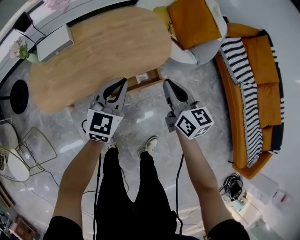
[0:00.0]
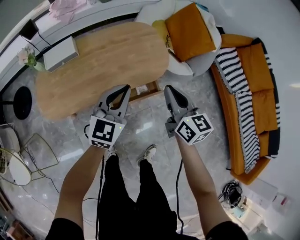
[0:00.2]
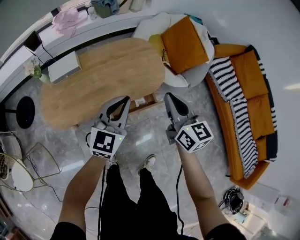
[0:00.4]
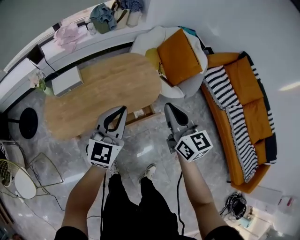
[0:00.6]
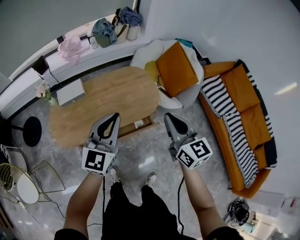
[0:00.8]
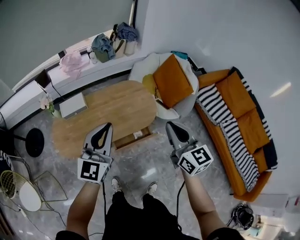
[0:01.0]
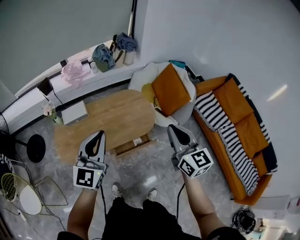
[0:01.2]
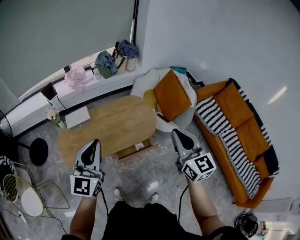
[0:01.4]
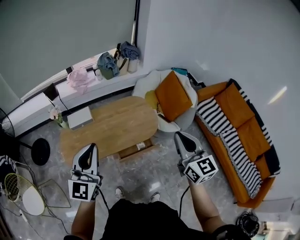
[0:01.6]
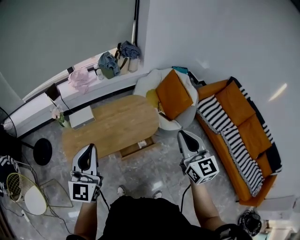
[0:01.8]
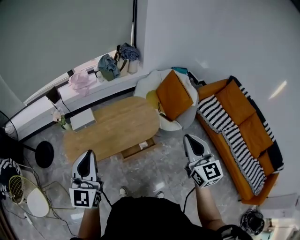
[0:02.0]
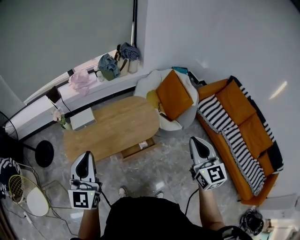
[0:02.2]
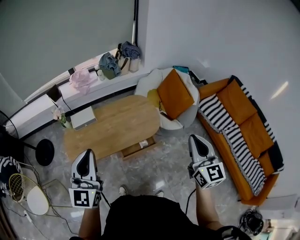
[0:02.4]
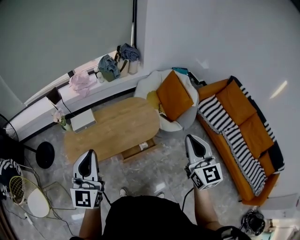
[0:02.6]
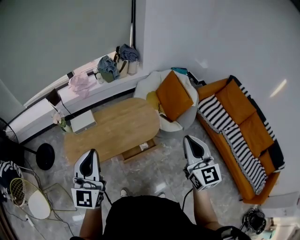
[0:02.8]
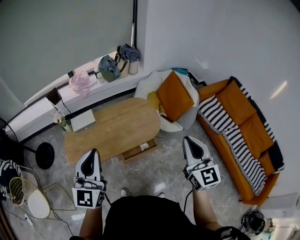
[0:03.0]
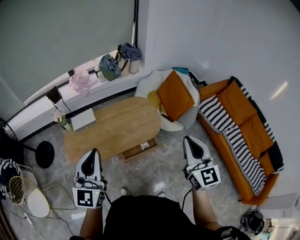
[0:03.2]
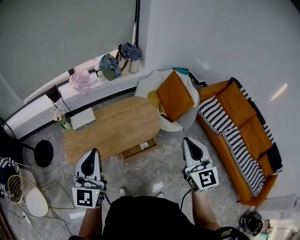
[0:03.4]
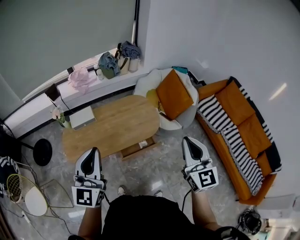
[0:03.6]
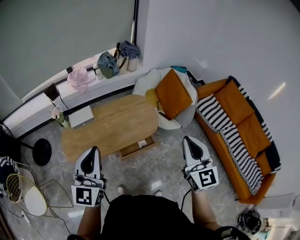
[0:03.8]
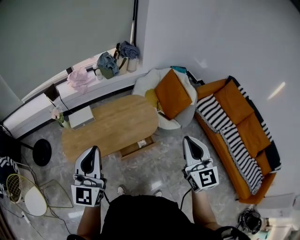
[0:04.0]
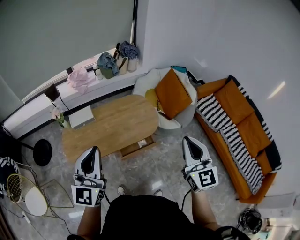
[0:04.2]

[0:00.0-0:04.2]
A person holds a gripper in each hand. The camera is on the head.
0:00.0 to 0:01.4: The two grippers go roughly 35 cm upward. The left gripper swivels approximately 20 degrees. The right gripper turns by some 20 degrees.
0:01.4 to 0:02.8: The grippers both shift backward by approximately 5 cm.
0:02.8 to 0:04.2: The grippers move only a little.

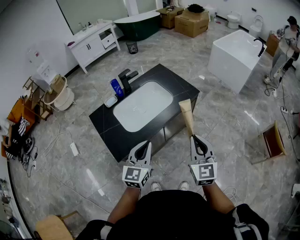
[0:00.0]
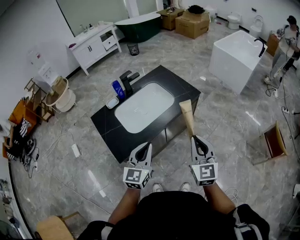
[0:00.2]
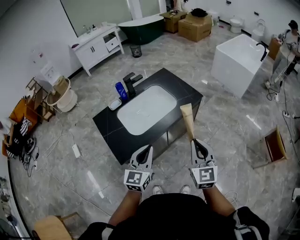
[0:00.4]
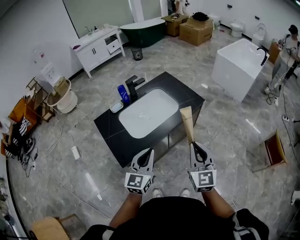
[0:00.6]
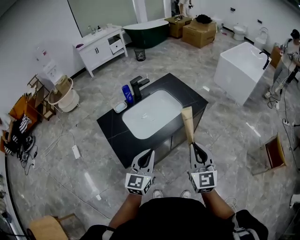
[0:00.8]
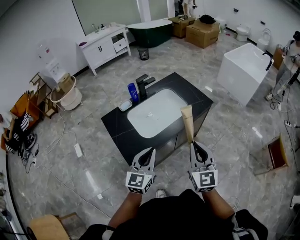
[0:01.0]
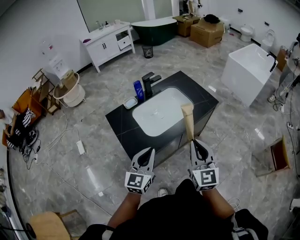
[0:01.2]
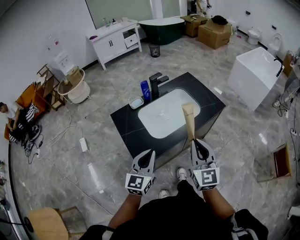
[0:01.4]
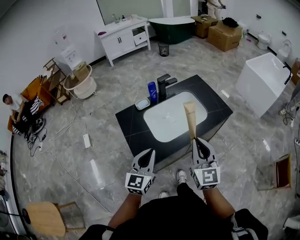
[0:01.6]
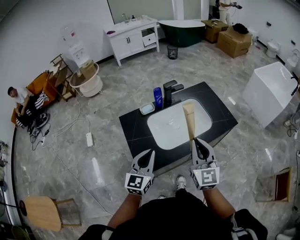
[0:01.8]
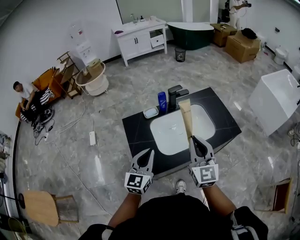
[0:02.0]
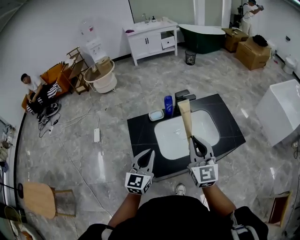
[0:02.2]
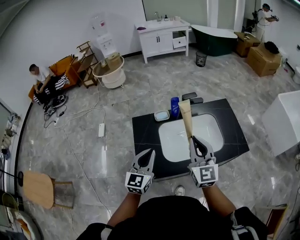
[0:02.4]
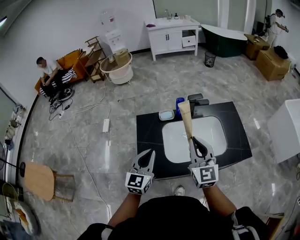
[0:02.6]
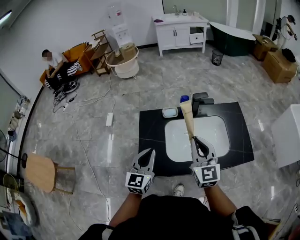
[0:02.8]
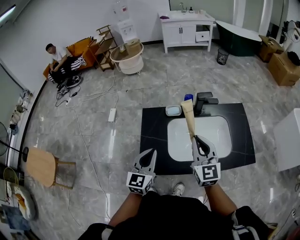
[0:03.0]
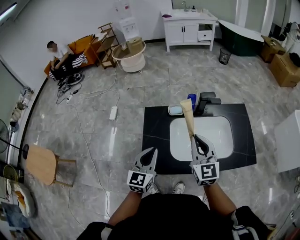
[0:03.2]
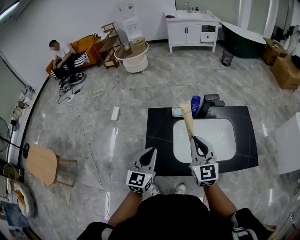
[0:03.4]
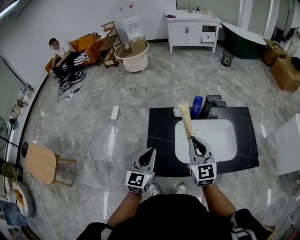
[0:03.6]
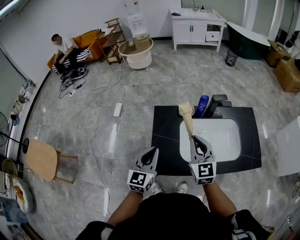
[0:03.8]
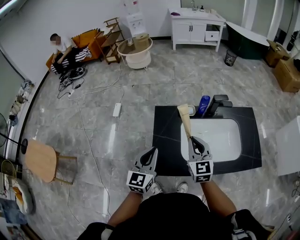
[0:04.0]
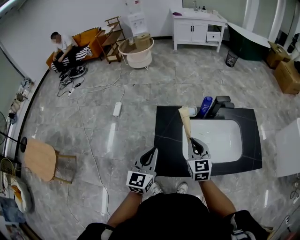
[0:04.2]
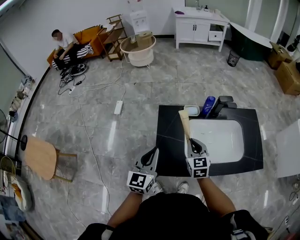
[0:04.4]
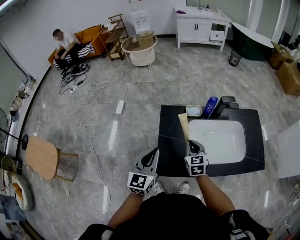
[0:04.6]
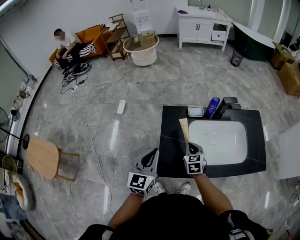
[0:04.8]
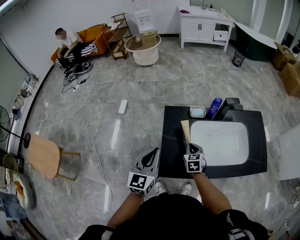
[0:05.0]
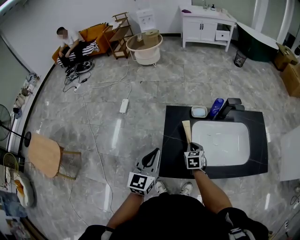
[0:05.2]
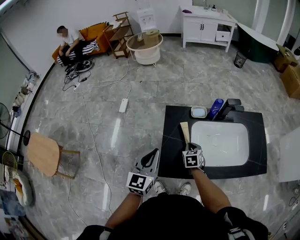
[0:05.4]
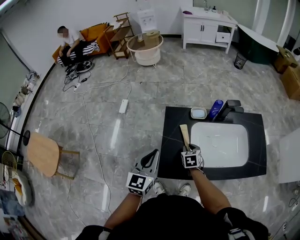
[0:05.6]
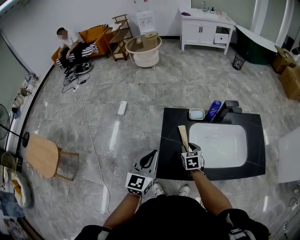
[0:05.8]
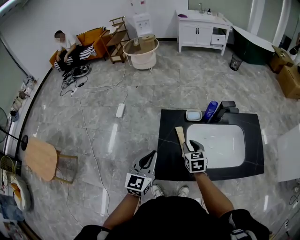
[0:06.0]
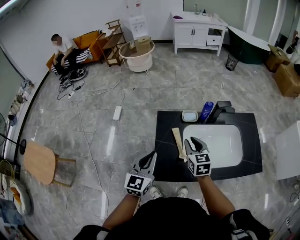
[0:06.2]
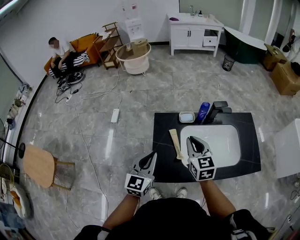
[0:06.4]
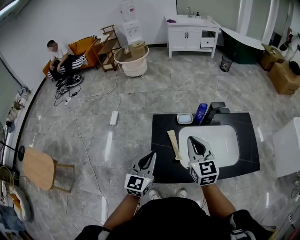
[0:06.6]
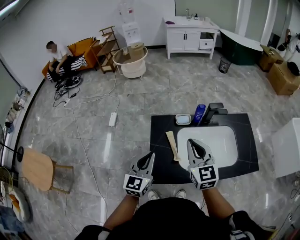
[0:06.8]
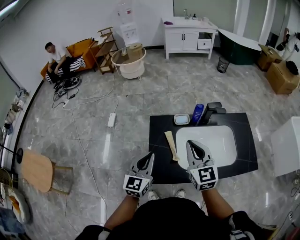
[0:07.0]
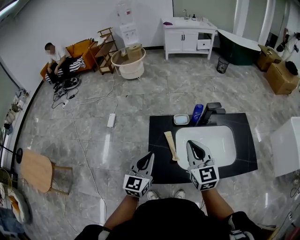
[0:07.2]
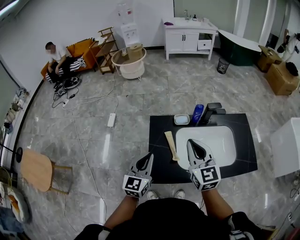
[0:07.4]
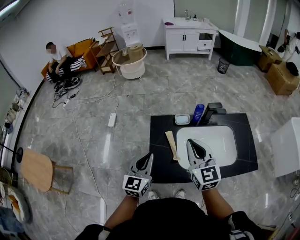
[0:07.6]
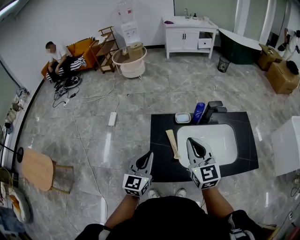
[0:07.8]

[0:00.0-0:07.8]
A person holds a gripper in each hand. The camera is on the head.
0:00.0 to 0:01.6: The right gripper shifts some 20 cm to the left and forward; the left gripper is displaced to the left by some 15 cm.
0:01.6 to 0:03.2: The right gripper shifts by about 20 cm, and changes its angle by about 30 degrees; the left gripper ends up approximately 10 cm from where it was, and turns by about 30 degrees.
0:03.2 to 0:04.6: The right gripper travels downward and to the left by some 20 cm, and swivels roughly 30 degrees. The left gripper is displaced to the left by approximately 10 cm.
0:04.6 to 0:06.2: The right gripper is displaced upward by approximately 5 cm, and opens up.
0:06.2 to 0:07.8: The right gripper goes approximately 15 cm upward, turns by some 20 degrees, and closes.

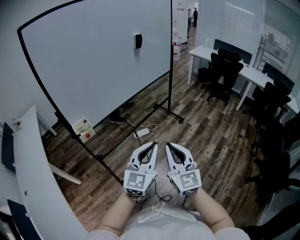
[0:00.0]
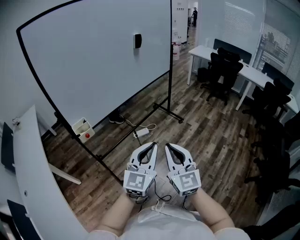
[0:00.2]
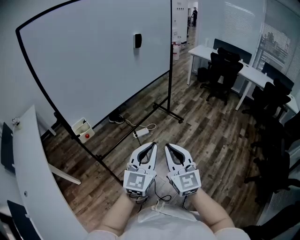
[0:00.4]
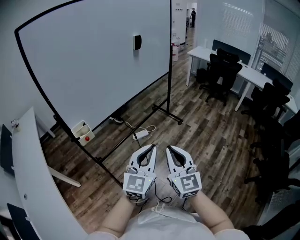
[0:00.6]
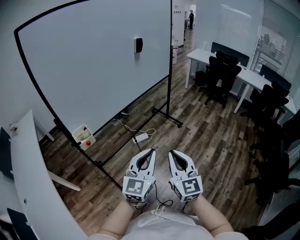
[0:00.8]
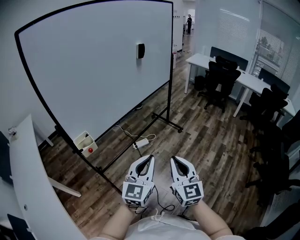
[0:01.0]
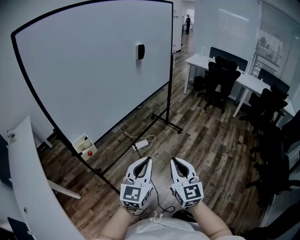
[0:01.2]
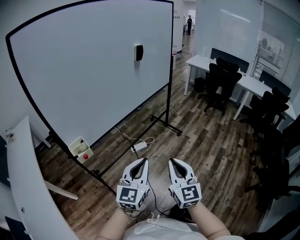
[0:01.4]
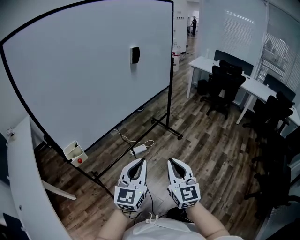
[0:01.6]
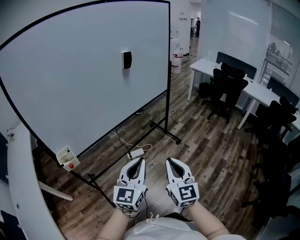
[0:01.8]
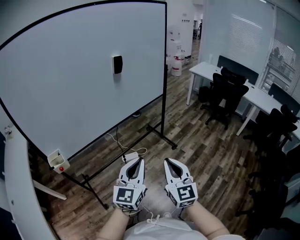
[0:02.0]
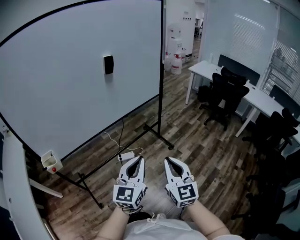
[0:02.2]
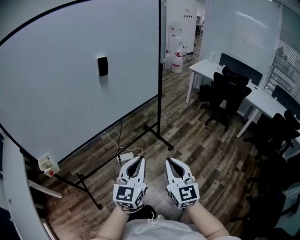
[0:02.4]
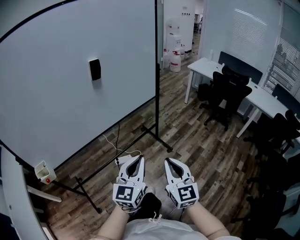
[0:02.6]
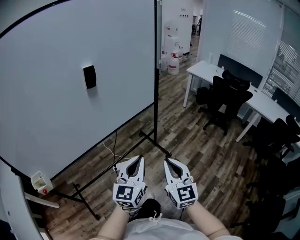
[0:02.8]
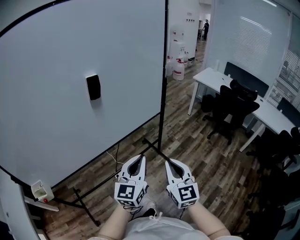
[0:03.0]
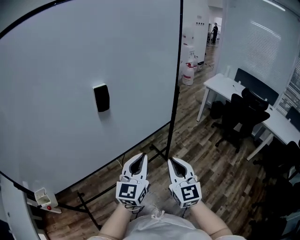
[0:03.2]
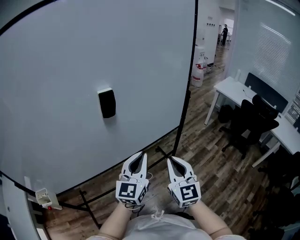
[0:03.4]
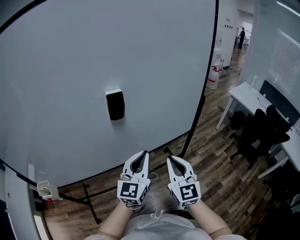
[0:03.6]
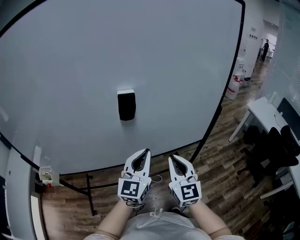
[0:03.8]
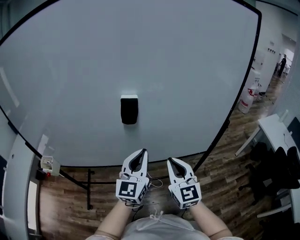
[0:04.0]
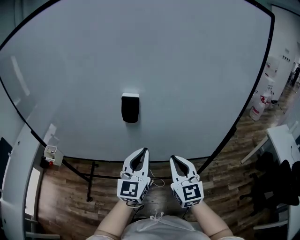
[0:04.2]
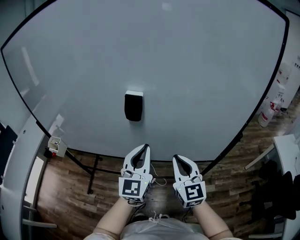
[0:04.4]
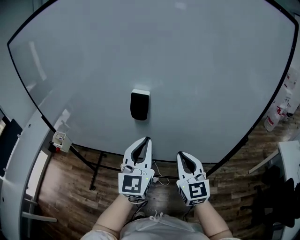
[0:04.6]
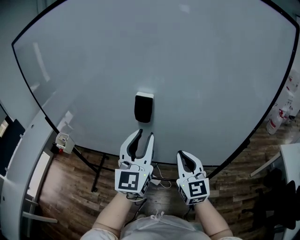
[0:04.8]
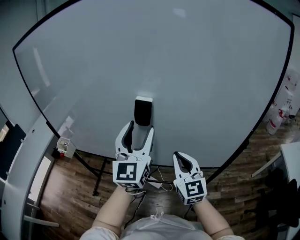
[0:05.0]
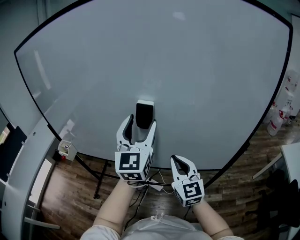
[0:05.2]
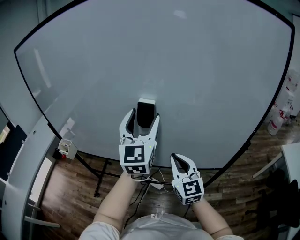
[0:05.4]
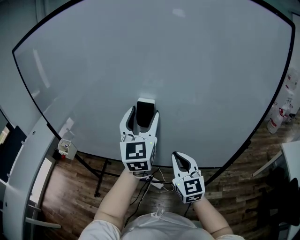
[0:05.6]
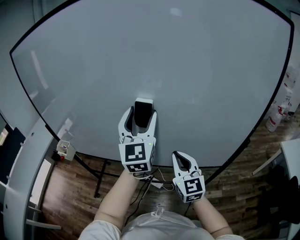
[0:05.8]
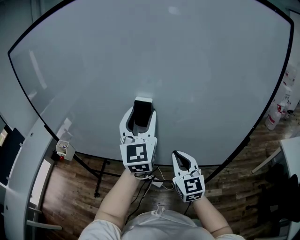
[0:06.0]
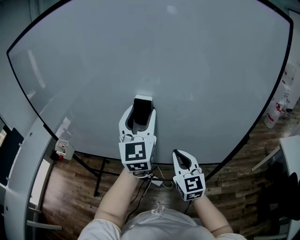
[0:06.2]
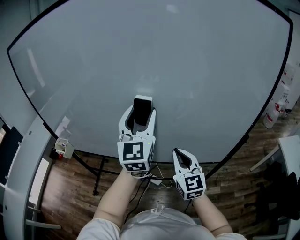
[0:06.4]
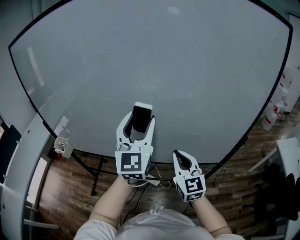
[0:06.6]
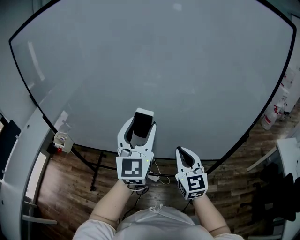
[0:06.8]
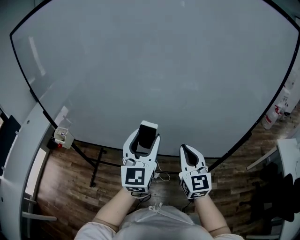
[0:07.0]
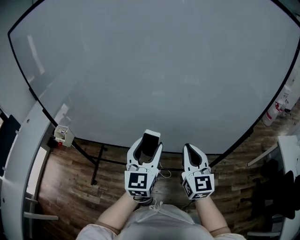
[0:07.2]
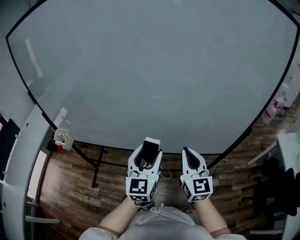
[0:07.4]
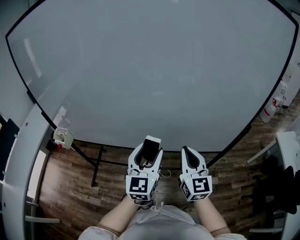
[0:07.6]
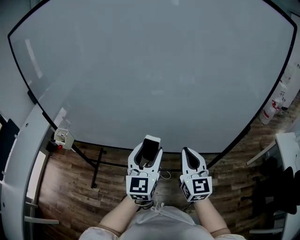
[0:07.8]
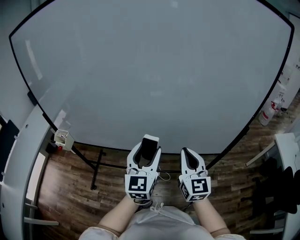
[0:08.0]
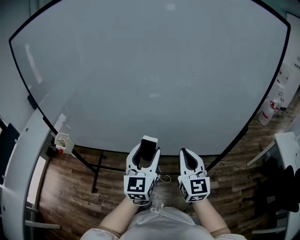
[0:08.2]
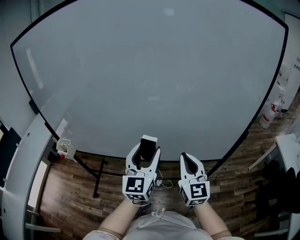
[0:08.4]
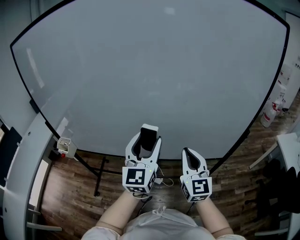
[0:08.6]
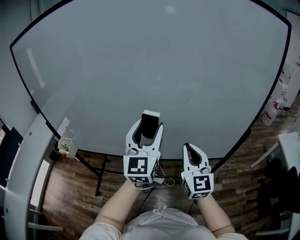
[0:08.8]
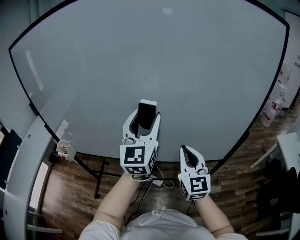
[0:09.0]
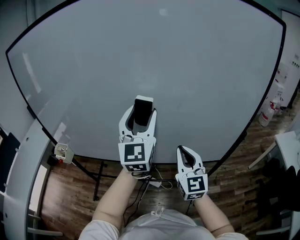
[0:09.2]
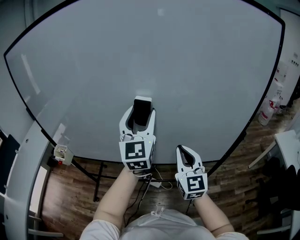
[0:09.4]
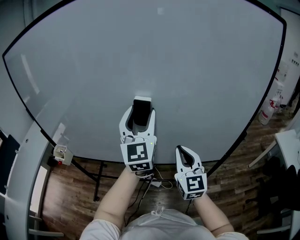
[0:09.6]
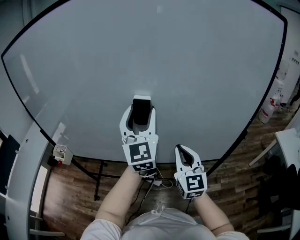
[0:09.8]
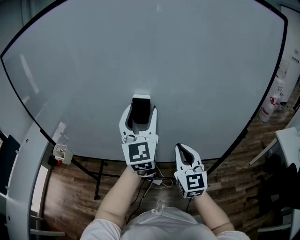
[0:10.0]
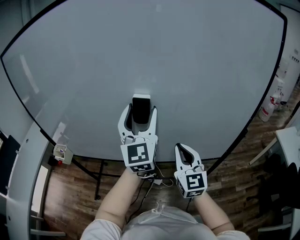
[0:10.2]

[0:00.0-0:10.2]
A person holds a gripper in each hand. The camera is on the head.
0:00.0 to 0:01.4: The left gripper moves to the left and forward, about 10 cm. Meanwhile the right gripper shifts approximately 5 cm forward.
0:01.4 to 0:03.0: Both grippers are carried forward and to the right, roughly 50 cm.
0:03.0 to 0:04.4: The left gripper shifts by some 25 cm, and changes its angle by about 50 degrees. Meanwhile the right gripper shifts by about 30 cm, and changes its angle by approximately 40 degrees.
0:04.4 to 0:05.8: The left gripper shifts approximately 15 cm upward and forward, and opens, while the right gripper moves roughly 5 cm.
0:05.8 to 0:07.2: The left gripper heads downward and backward, covering roughly 20 cm.
0:07.2 to 0:08.8: The left gripper shifts about 10 cm upward.
0:08.8 to 0:10.2: The left gripper ends up about 5 cm from where it was.

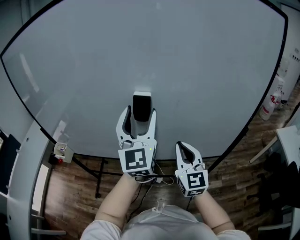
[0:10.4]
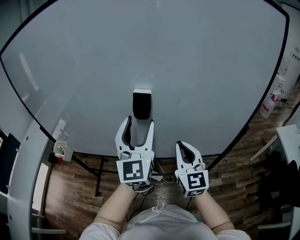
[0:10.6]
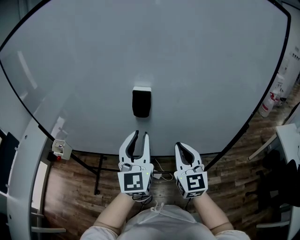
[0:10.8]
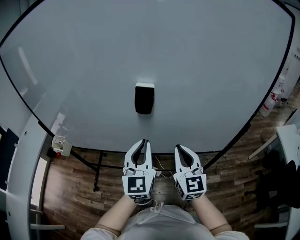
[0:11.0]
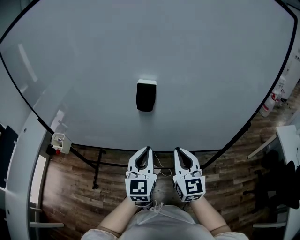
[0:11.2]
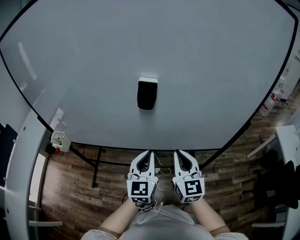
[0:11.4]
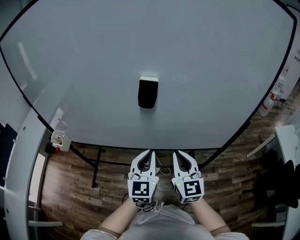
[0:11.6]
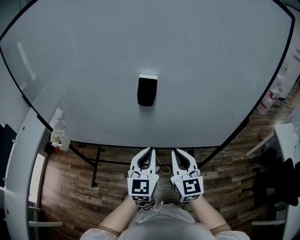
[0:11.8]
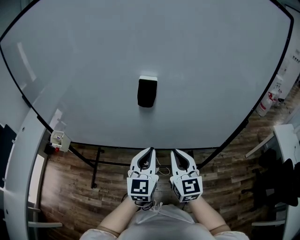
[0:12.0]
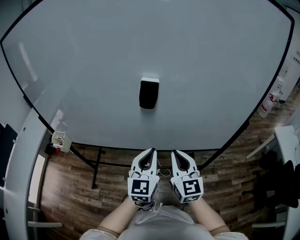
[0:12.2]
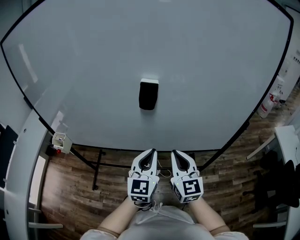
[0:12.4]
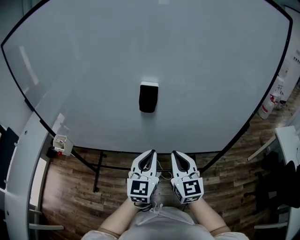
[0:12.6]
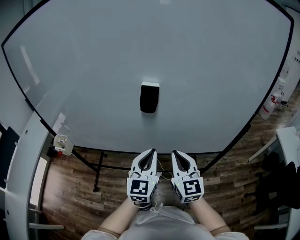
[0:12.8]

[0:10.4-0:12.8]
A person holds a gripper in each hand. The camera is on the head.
0:10.4 to 0:11.6: The left gripper heads downward and backward, covering approximately 20 cm, turns by some 20 degrees, and closes. The right gripper goes approximately 5 cm downward.
0:11.6 to 0:12.8: The grippers make only small movements.
